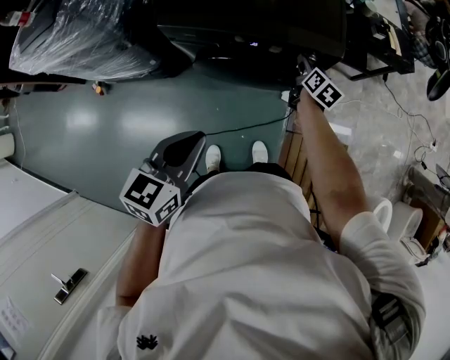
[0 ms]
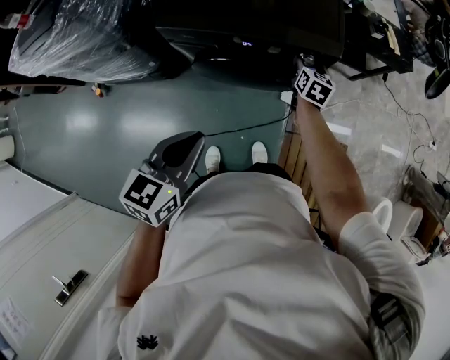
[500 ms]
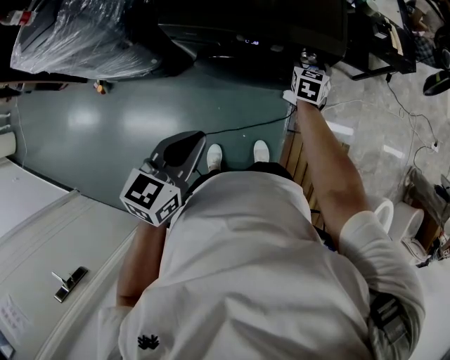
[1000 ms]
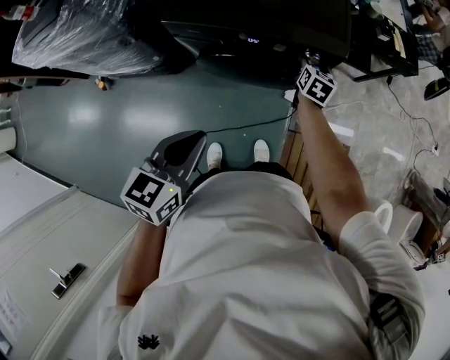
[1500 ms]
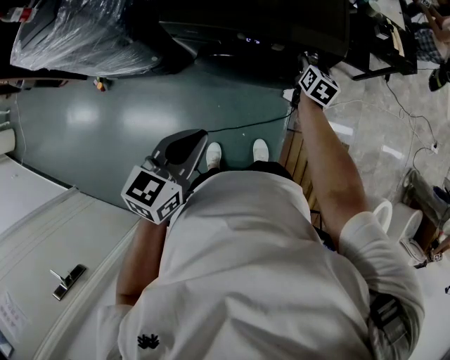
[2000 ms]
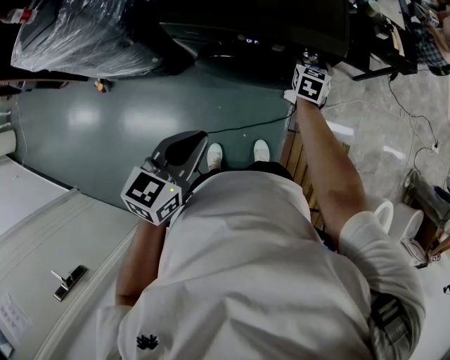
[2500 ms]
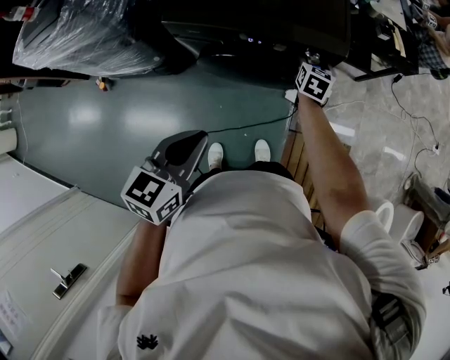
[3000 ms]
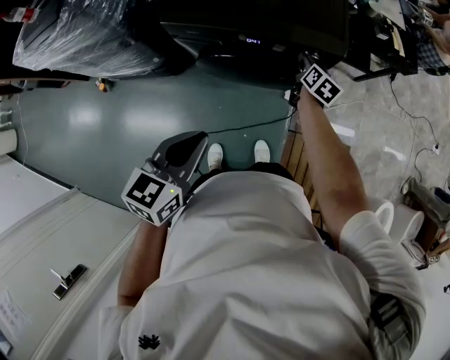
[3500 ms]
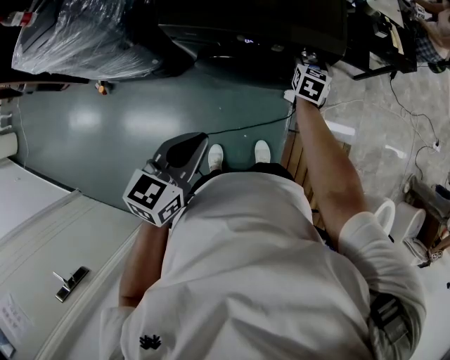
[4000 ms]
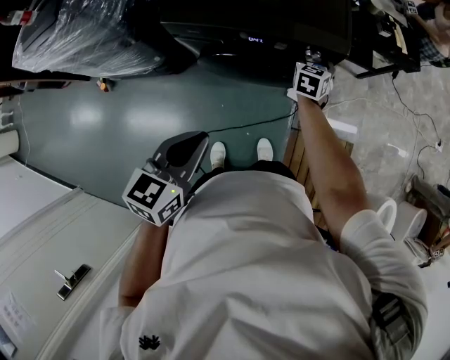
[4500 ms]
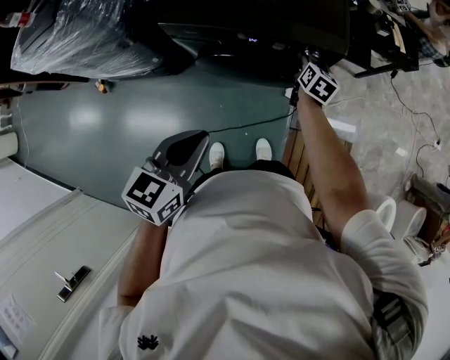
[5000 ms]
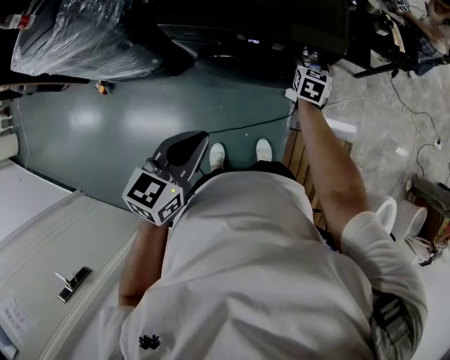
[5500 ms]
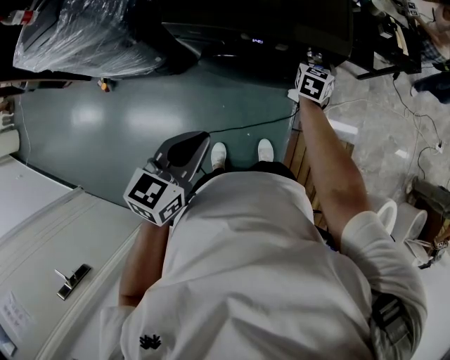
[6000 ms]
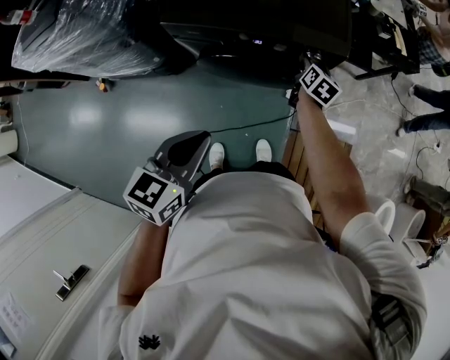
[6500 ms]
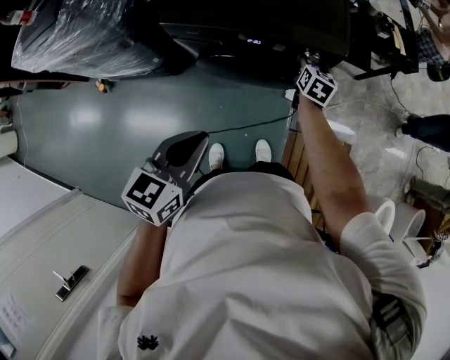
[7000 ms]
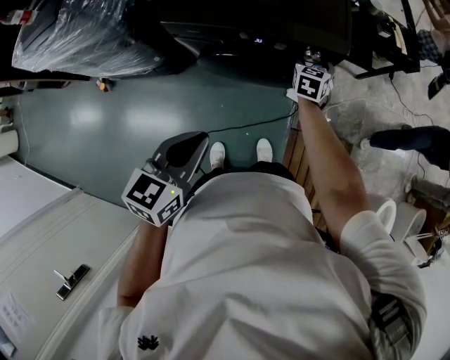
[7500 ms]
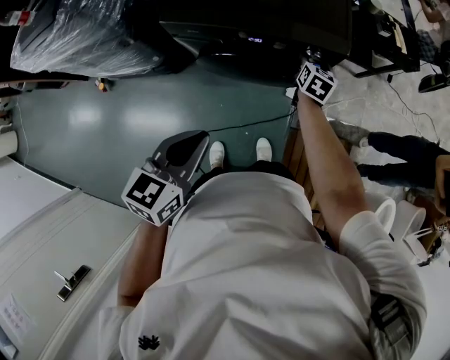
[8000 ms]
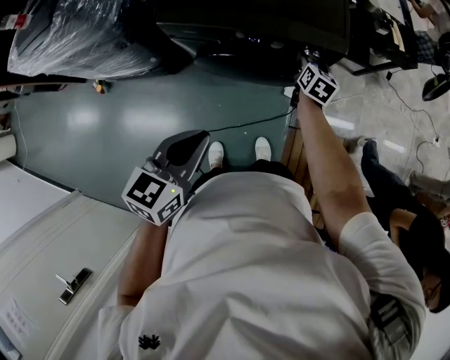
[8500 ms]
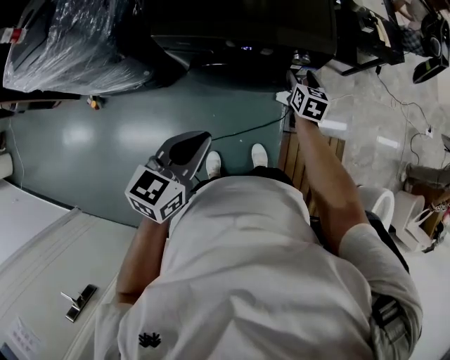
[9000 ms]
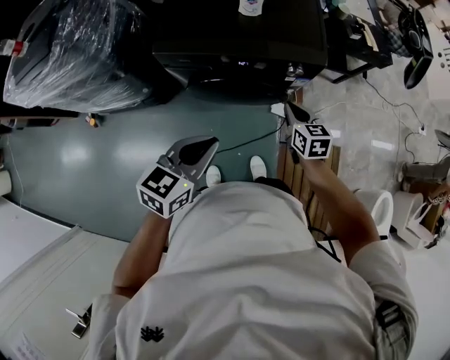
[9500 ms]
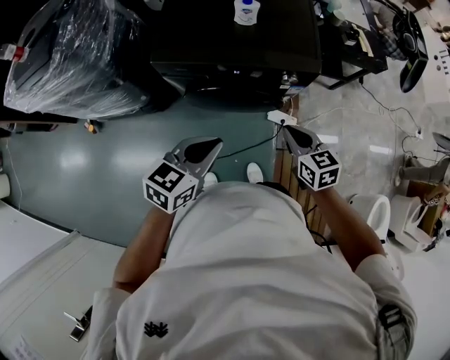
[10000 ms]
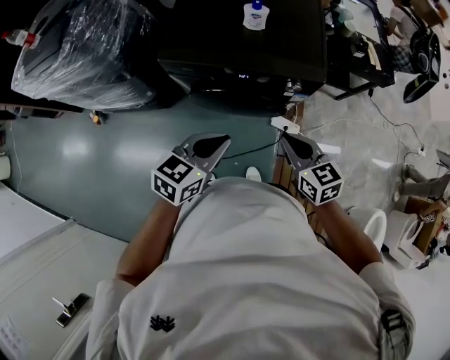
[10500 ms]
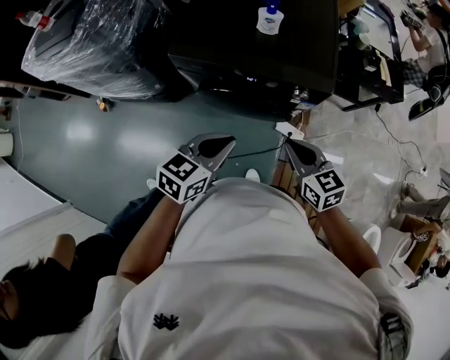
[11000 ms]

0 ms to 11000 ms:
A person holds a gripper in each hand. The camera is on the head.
3500 ms to 5500 ms: The right gripper turns by roughly 30 degrees.
7500 ms to 9000 ms: The right gripper ends up approximately 5 cm from where it was.
9000 ms to 11000 ms: The right gripper heads backward and upward, covering roughly 20 cm, turns by roughly 40 degrees, and closes its fingers. Meanwhile the left gripper heads forward and to the right, covering approximately 10 cm.

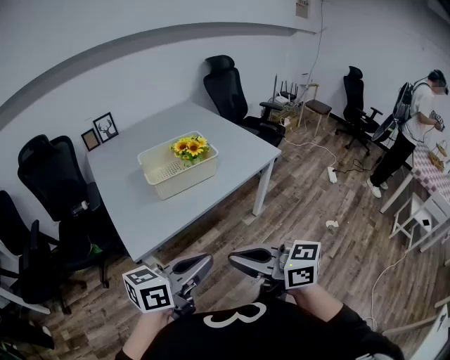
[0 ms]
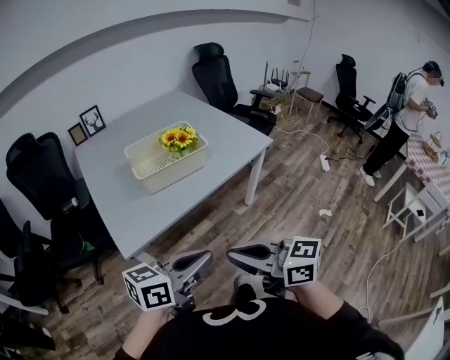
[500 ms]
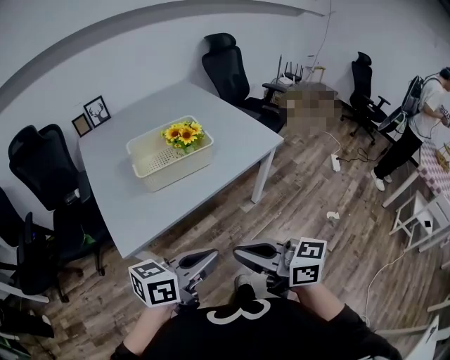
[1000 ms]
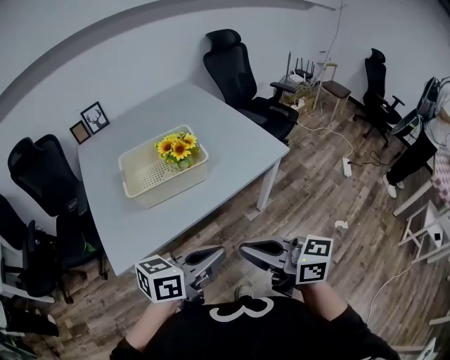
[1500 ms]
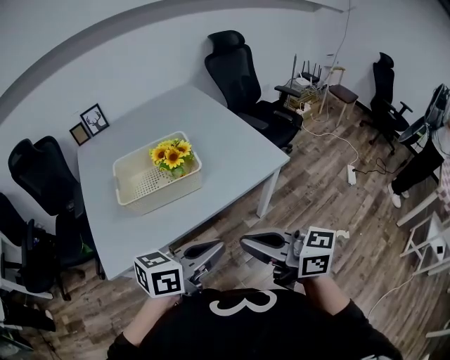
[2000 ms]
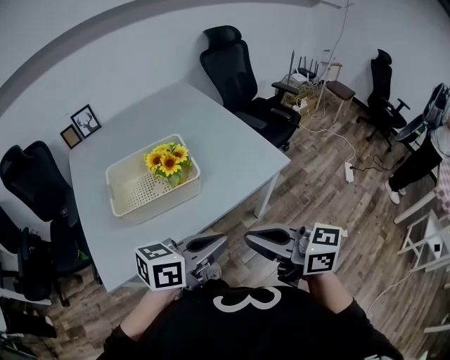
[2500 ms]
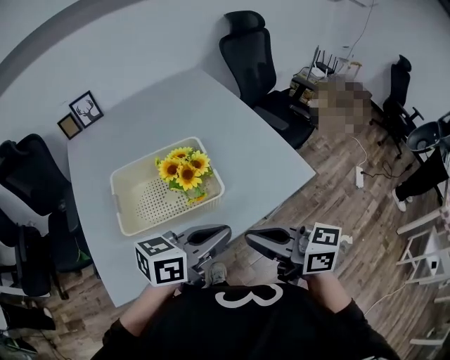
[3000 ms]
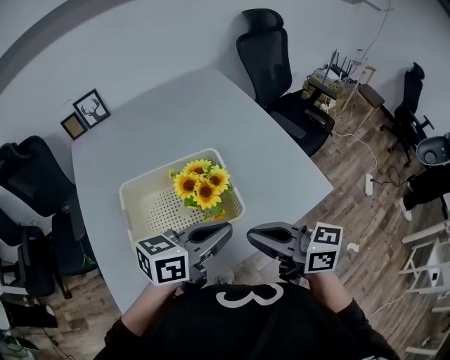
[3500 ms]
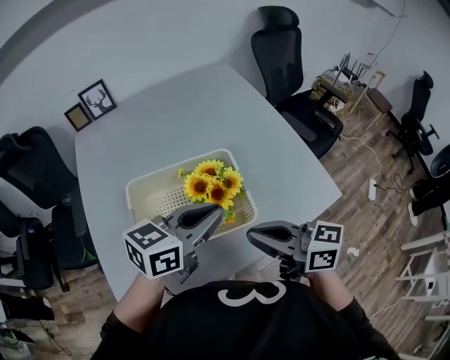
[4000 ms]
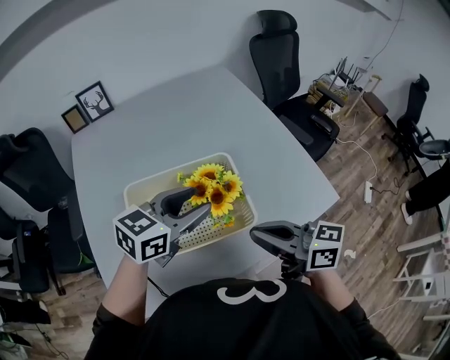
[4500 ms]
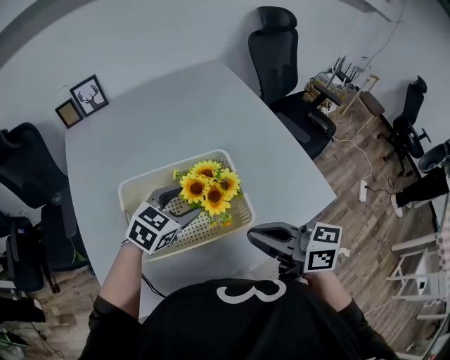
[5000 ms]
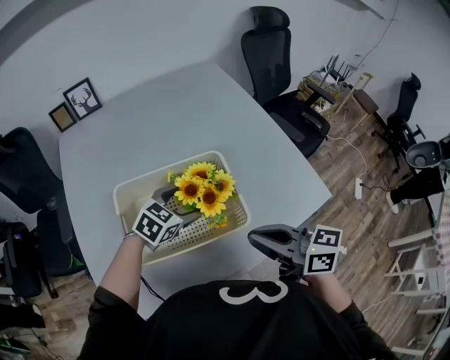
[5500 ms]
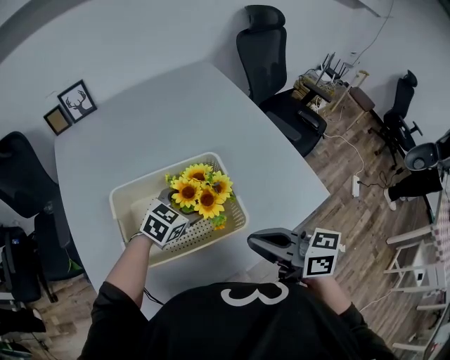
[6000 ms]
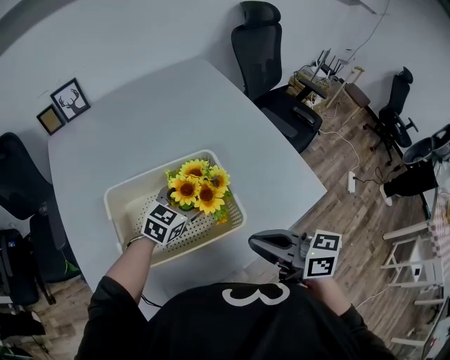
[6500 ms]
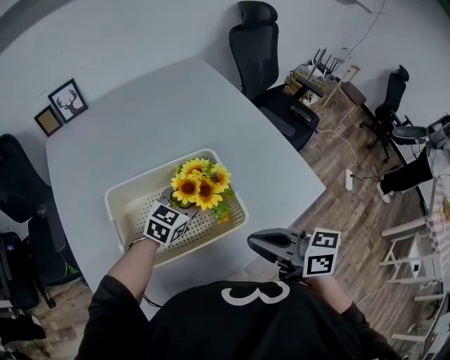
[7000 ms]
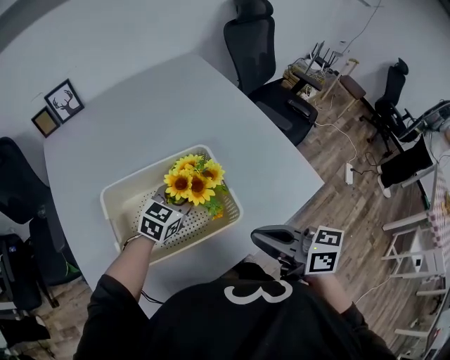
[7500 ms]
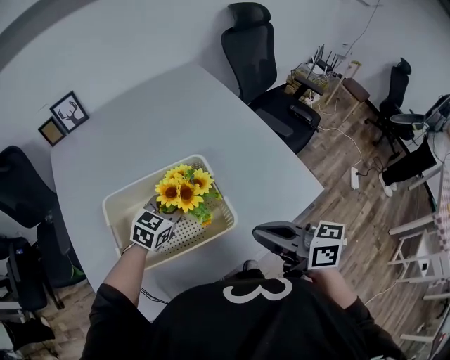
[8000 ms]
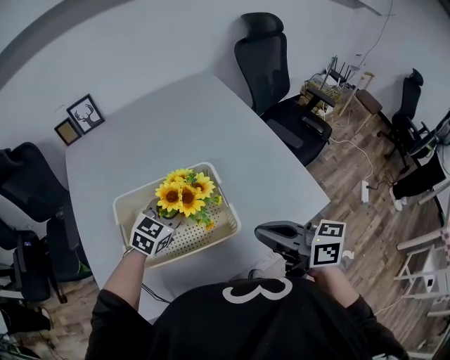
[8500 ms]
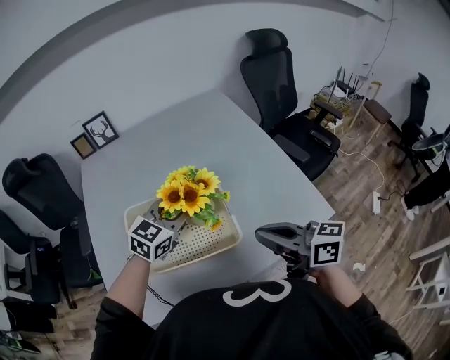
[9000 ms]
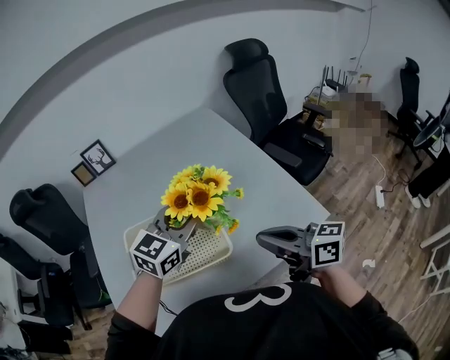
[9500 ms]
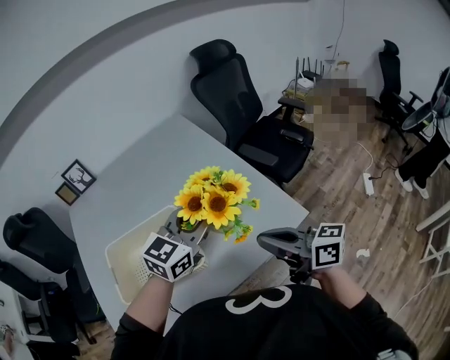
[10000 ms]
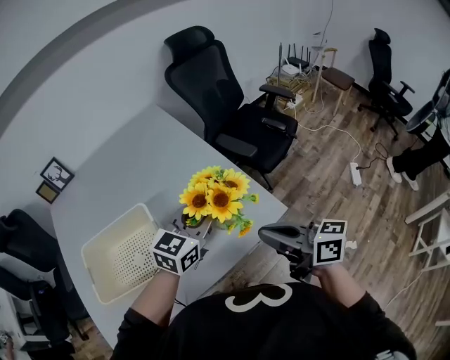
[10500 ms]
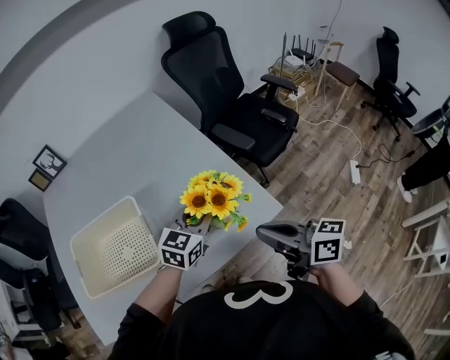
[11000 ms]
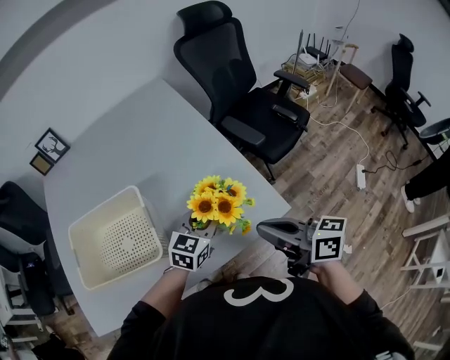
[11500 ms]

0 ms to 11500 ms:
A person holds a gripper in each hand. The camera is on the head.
0 ms to 2000 ms: The grippers both shift forward and to the right by approximately 25 cm.
2000 ms to 4000 ms: The grippers both shift forward and to the left by roughly 35 cm.
4000 ms to 6000 ms: The left gripper travels downward and forward by some 20 cm, swivels about 30 degrees, and opens.
6000 ms to 7500 ms: The left gripper closes up.
7500 ms to 9500 ms: The left gripper goes about 20 cm upward, while the right gripper moves to the right and upward, about 10 cm.
9500 ms to 11500 ms: The left gripper moves to the right and downward, approximately 30 cm. Meanwhile the right gripper travels to the right by some 20 cm.

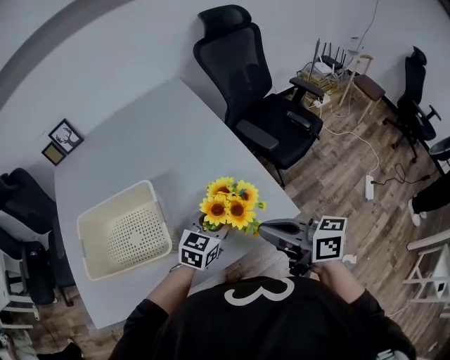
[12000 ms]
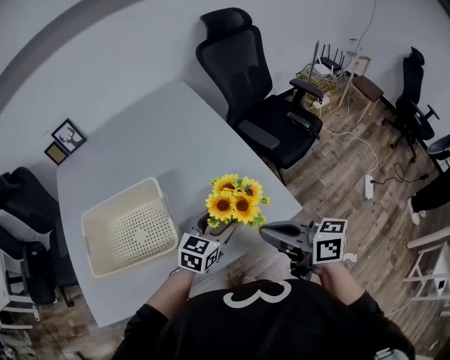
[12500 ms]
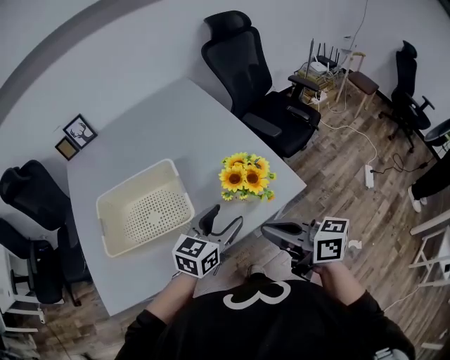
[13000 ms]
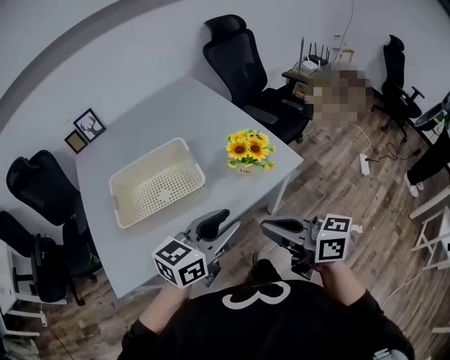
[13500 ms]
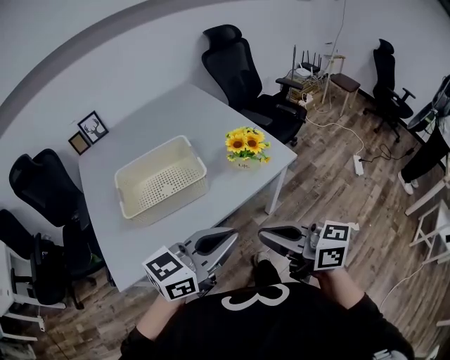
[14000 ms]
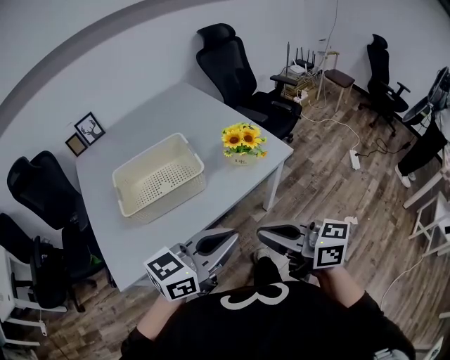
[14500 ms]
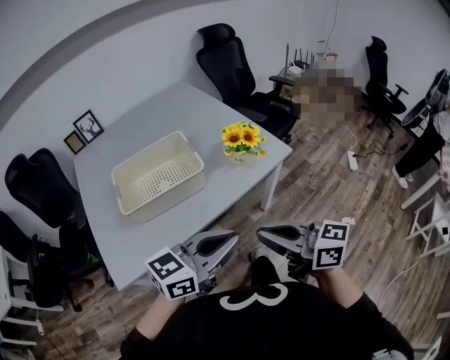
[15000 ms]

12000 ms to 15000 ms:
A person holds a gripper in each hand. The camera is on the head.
12000 ms to 13500 ms: The right gripper shifts roughly 25 cm backward and to the left; the left gripper travels backward, upward and to the left by some 35 cm, and changes its angle by approximately 20 degrees.
13500 ms to 15000 ms: Both grippers move backward, roughly 10 cm. The left gripper closes.

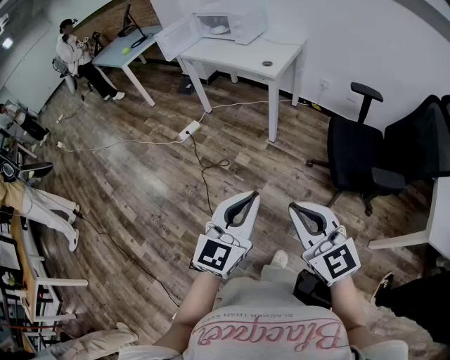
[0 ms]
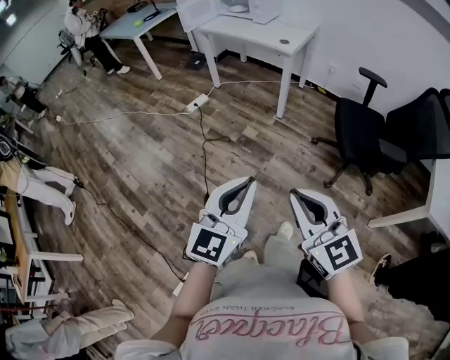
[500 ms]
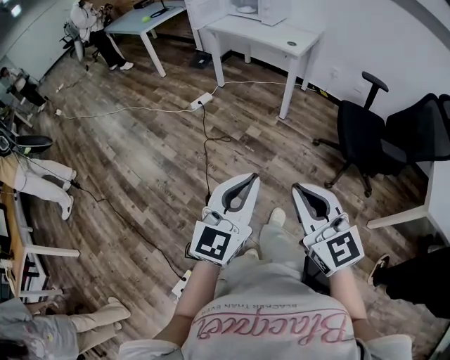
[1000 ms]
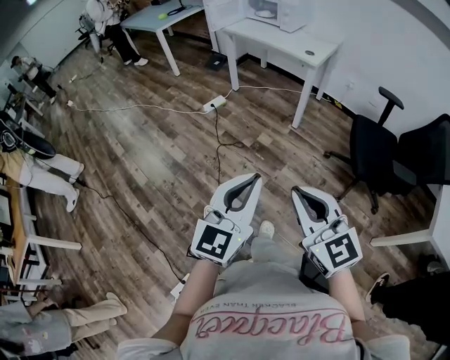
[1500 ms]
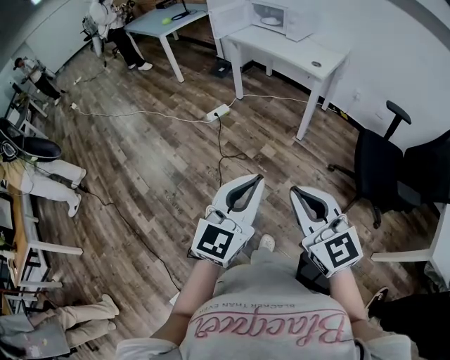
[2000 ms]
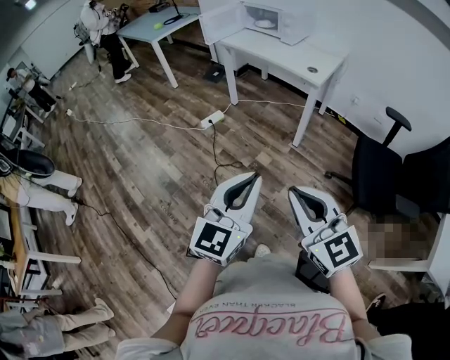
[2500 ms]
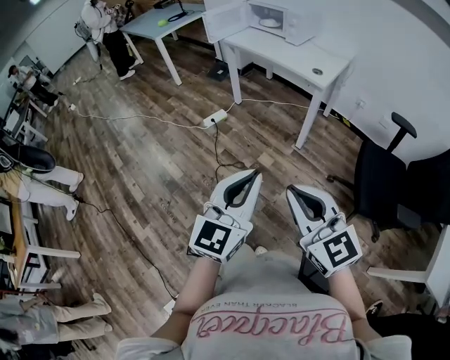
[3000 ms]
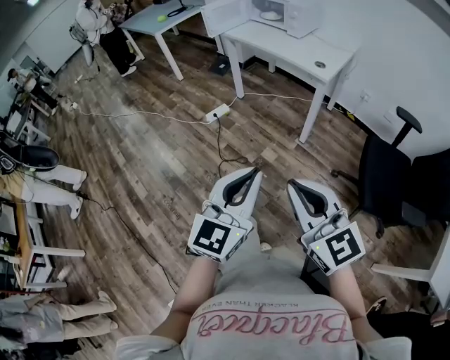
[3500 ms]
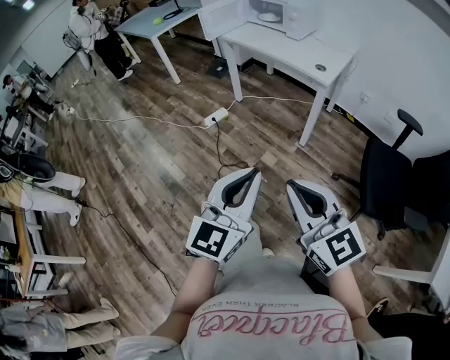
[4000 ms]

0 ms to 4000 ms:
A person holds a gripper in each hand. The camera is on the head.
0 ms to 2000 ms: Both grippers move to the left, about 20 cm.
2000 ms to 4000 ms: Both grippers travel together forward, approximately 15 cm.
